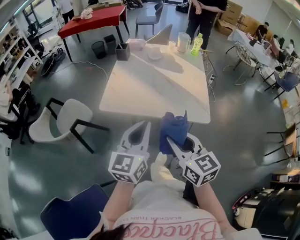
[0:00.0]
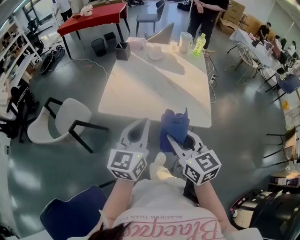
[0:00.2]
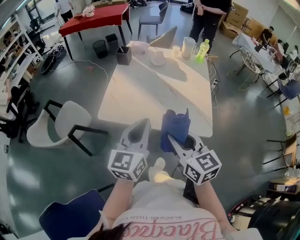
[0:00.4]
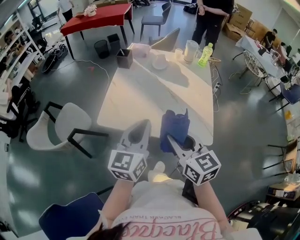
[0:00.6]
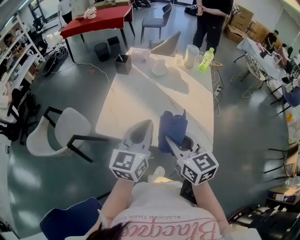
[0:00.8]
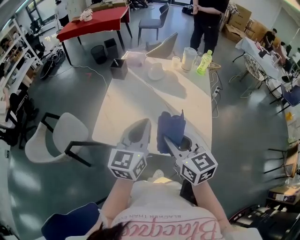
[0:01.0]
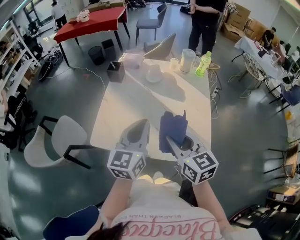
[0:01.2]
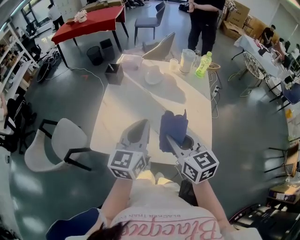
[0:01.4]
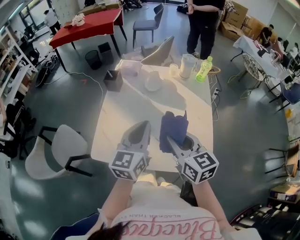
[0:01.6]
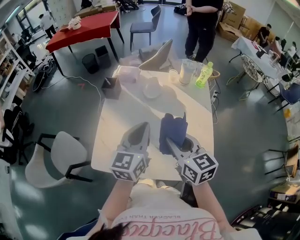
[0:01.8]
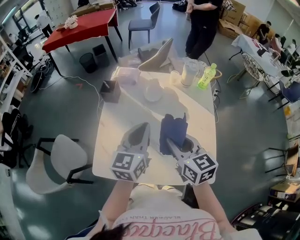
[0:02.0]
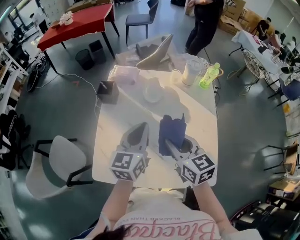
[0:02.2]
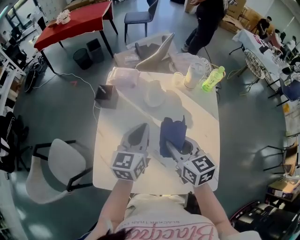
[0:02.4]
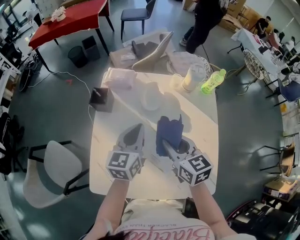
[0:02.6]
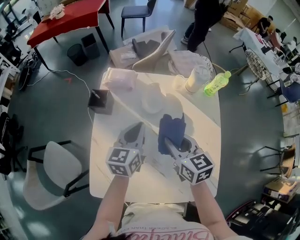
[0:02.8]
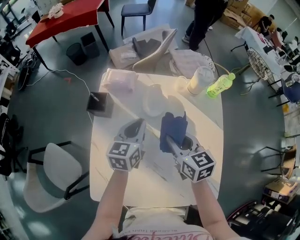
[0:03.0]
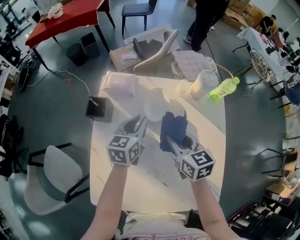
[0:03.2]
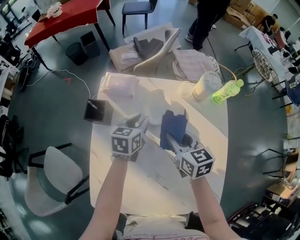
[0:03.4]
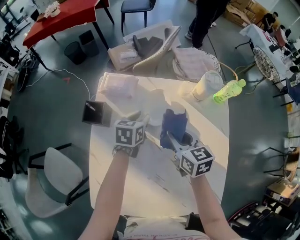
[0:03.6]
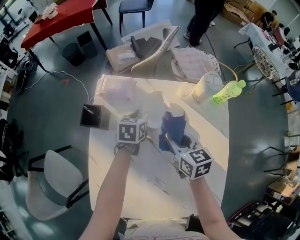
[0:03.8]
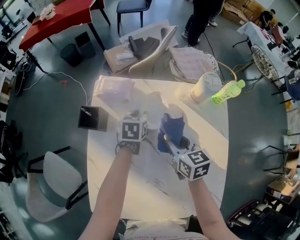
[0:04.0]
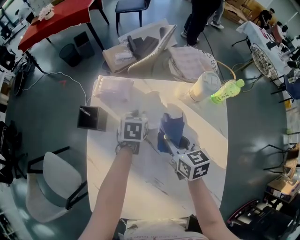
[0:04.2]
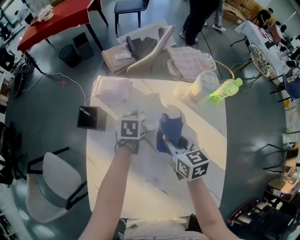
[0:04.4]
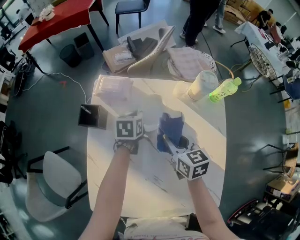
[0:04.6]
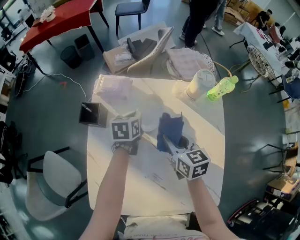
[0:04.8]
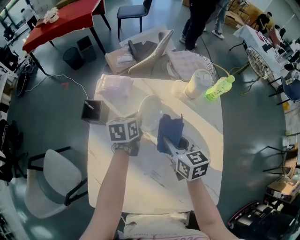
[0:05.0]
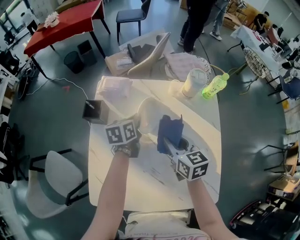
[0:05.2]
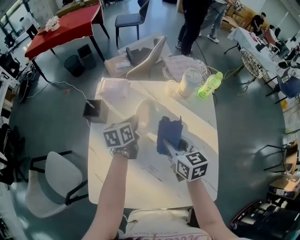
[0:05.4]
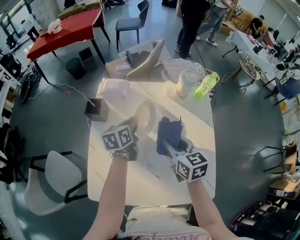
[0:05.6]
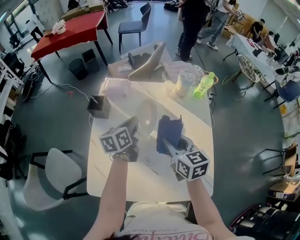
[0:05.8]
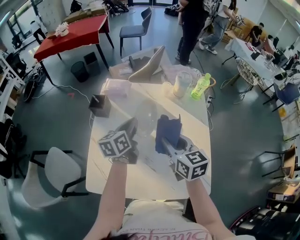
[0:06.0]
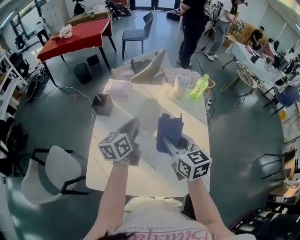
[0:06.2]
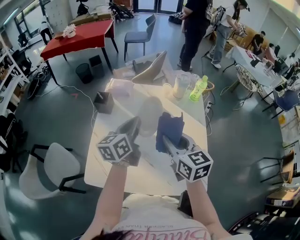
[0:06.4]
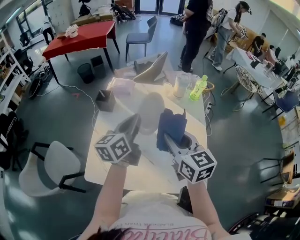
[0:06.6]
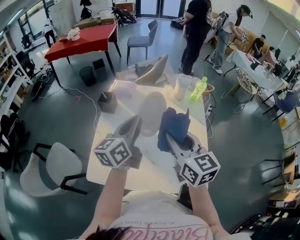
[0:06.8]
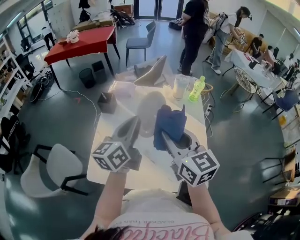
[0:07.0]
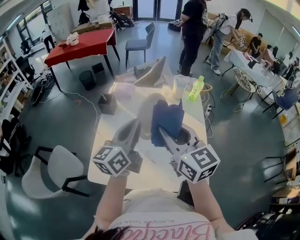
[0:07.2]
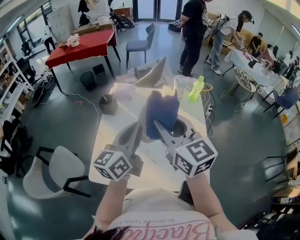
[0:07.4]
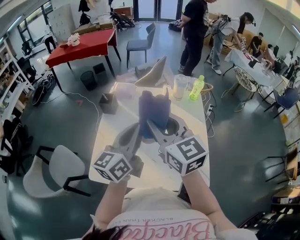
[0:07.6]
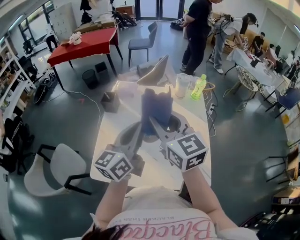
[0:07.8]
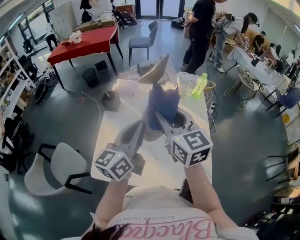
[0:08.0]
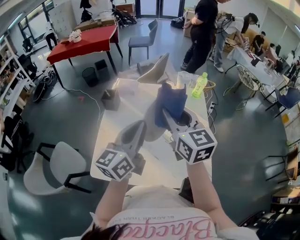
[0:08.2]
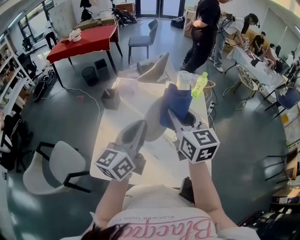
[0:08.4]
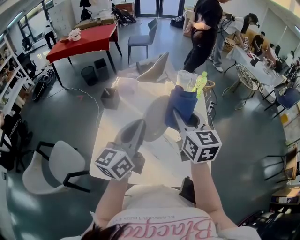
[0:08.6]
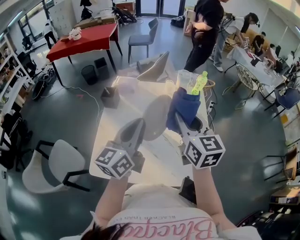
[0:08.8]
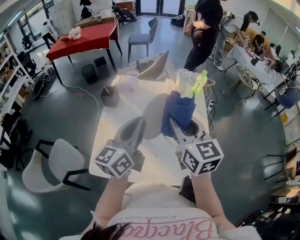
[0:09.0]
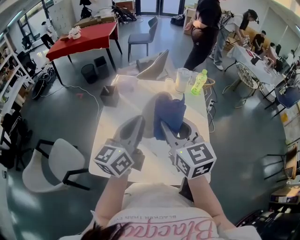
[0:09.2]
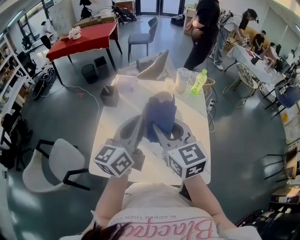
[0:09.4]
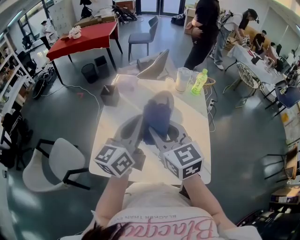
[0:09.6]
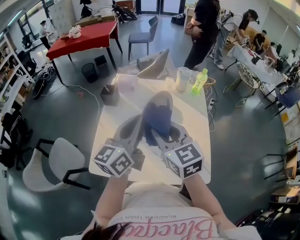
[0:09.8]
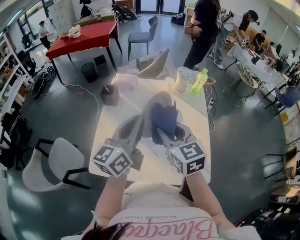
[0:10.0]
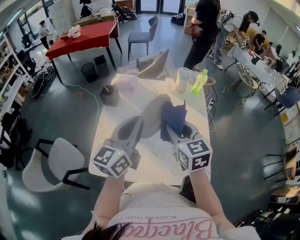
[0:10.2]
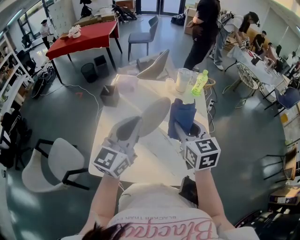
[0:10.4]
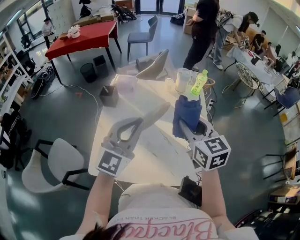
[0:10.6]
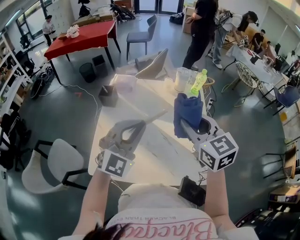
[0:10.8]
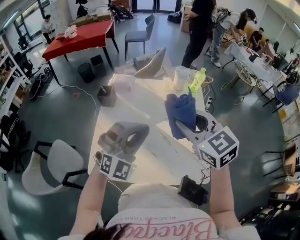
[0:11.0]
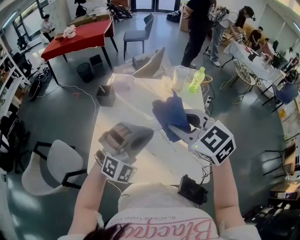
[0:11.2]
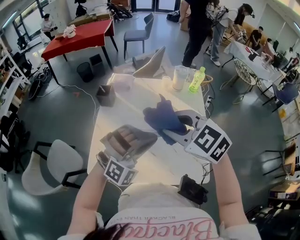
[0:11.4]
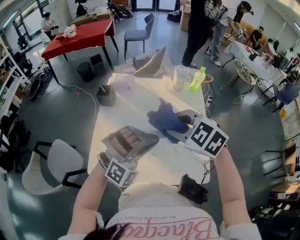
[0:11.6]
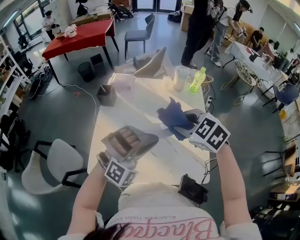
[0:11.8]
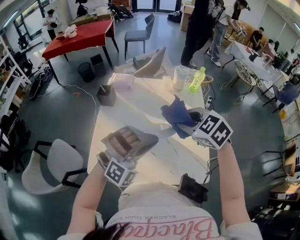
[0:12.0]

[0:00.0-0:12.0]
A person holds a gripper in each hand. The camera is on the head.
0:00.0 to 0:01.6: The two grippers go approximately 35 cm forward.
0:01.6 to 0:03.0: The two grippers go about 30 cm forward and downward.
0:03.0 to 0:04.4: The right gripper travels forward and downward by about 10 cm; the left gripper shifts about 20 cm downward and forward, and tilts its fingers some 30 degrees downward.
0:04.4 to 0:06.0: Both grippers move backward and upward, some 25 cm. The left gripper tilts its fingers some 30 degrees upward.
0:06.0 to 0:07.6: The left gripper moves backward and upward, approximately 25 cm, and swivels roughly 30 degrees. The right gripper is displaced upward and backward by approximately 20 cm, and swivels some 20 degrees.
0:07.6 to 0:09.0: The right gripper shifts roughly 5 cm to the right.
0:09.0 to 0:10.4: The right gripper moves downward, about 5 cm, and travels to the left and back again, about 5 cm each way; the left gripper turns by approximately 20 degrees.
0:10.4 to 0:12.0: The left gripper goes approximately 10 cm to the right, downward and backward, and rolls clockwise, seen from behind, by about 80 degrees, while the right gripper moves about 5 cm upward and comes back, and turns by approximately 40 degrees.

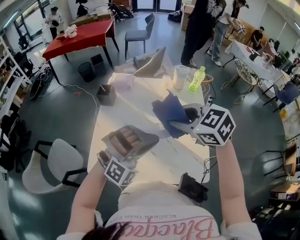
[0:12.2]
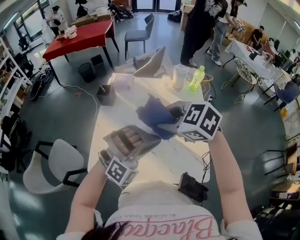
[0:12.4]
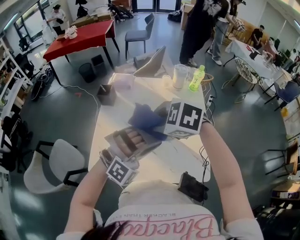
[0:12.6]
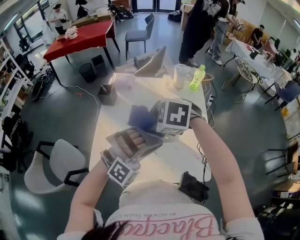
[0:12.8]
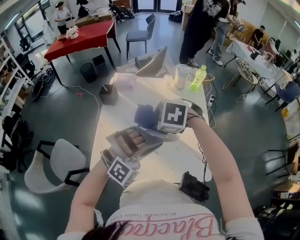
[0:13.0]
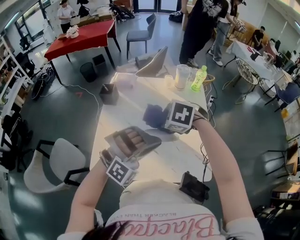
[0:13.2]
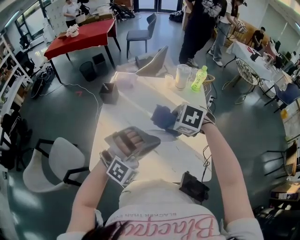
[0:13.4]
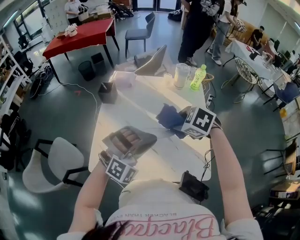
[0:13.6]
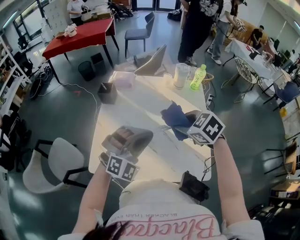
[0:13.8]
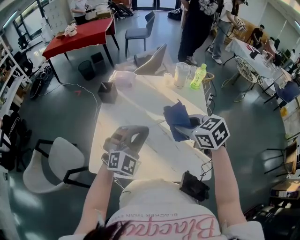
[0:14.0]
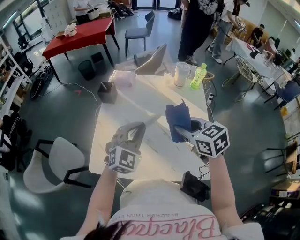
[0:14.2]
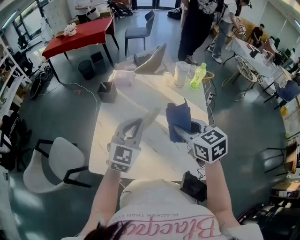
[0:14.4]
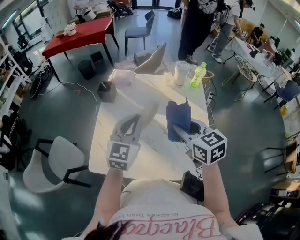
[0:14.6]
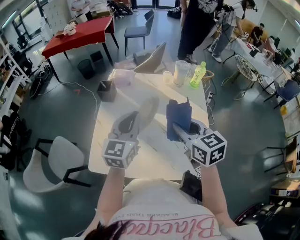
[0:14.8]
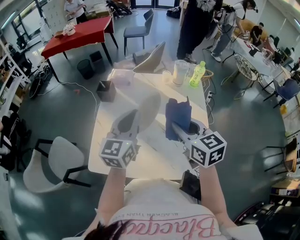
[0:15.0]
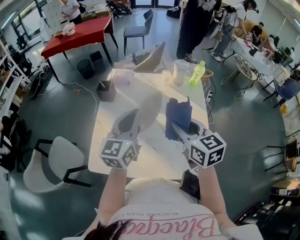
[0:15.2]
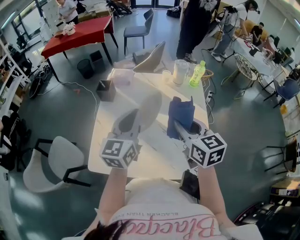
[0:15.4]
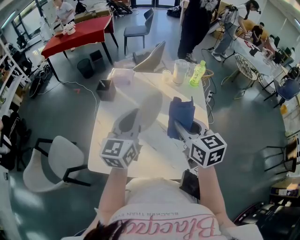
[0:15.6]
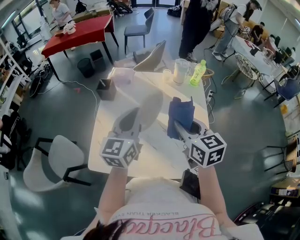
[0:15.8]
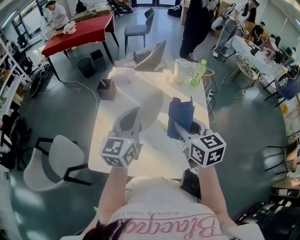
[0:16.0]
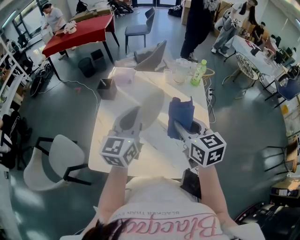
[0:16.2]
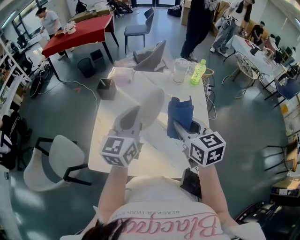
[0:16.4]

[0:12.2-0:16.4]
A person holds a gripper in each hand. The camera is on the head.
0:12.2 to 0:13.6: The right gripper heads downward, covering roughly 10 cm, and swivels roughly 30 degrees.
0:13.6 to 0:15.0: The right gripper travels upward by approximately 5 cm, and tilts its fingers roughly 40 degrees upward; the left gripper moves forward, to the left and upward, approximately 15 cm, and rotates around the line of its fingers by about 90 degrees, counterclockwise from behind.
0:15.0 to 0:16.4: The grippers move only a little.

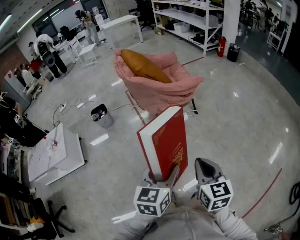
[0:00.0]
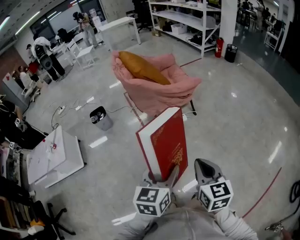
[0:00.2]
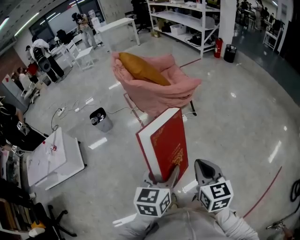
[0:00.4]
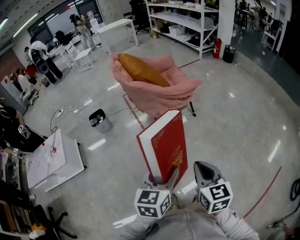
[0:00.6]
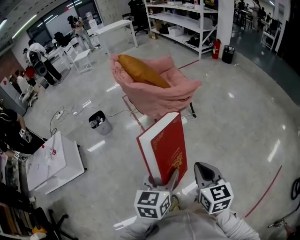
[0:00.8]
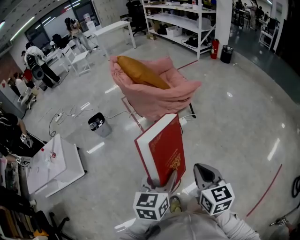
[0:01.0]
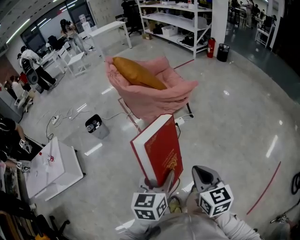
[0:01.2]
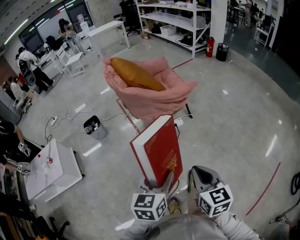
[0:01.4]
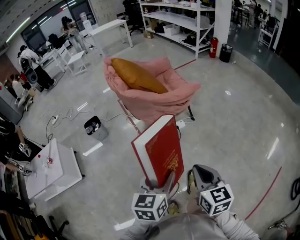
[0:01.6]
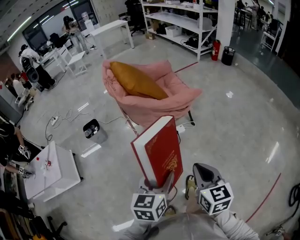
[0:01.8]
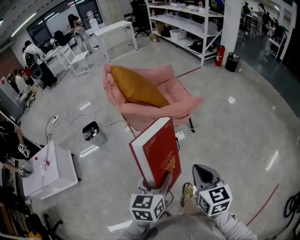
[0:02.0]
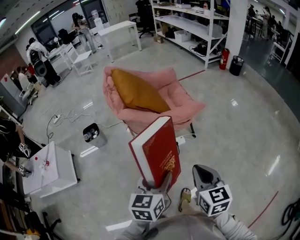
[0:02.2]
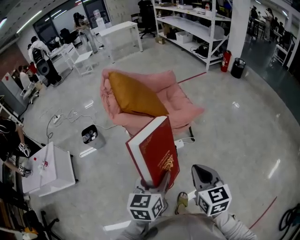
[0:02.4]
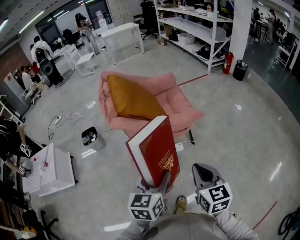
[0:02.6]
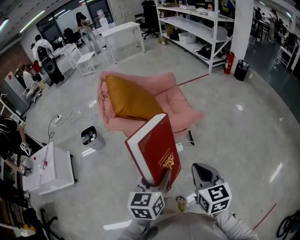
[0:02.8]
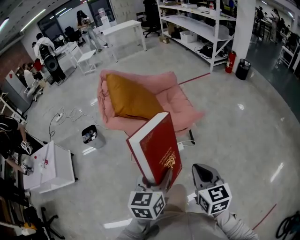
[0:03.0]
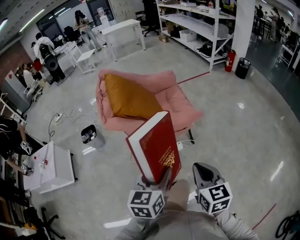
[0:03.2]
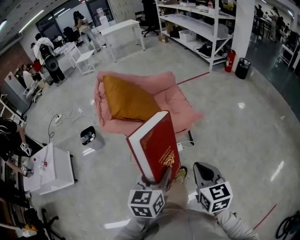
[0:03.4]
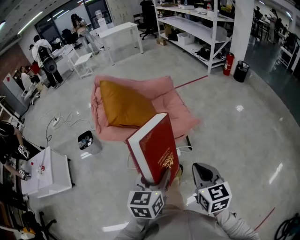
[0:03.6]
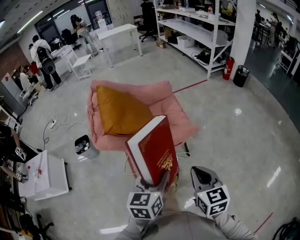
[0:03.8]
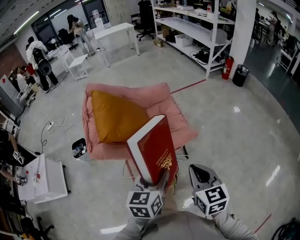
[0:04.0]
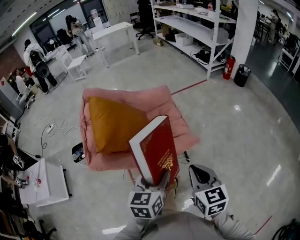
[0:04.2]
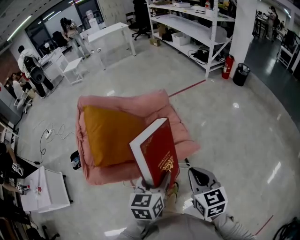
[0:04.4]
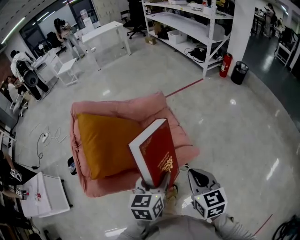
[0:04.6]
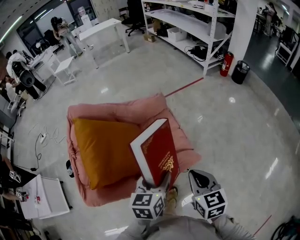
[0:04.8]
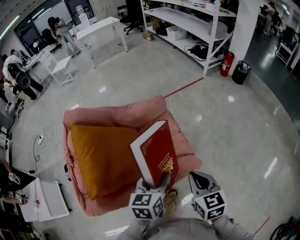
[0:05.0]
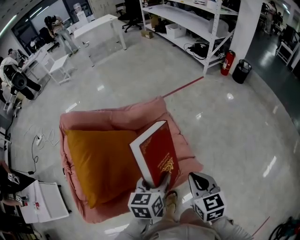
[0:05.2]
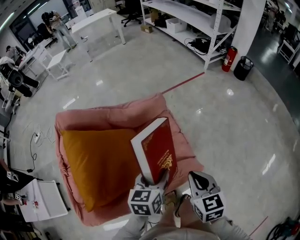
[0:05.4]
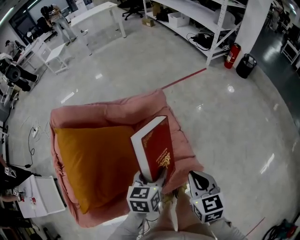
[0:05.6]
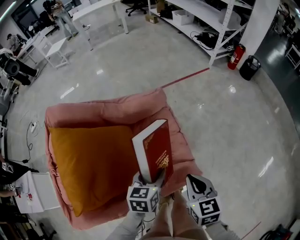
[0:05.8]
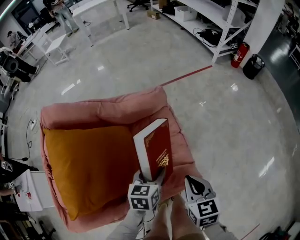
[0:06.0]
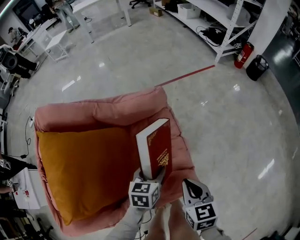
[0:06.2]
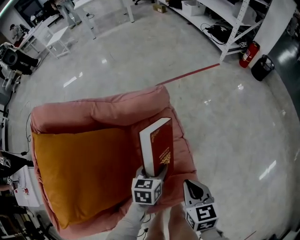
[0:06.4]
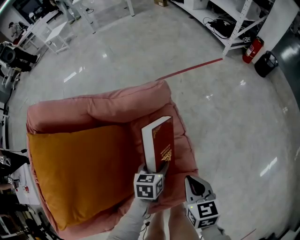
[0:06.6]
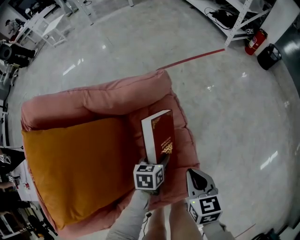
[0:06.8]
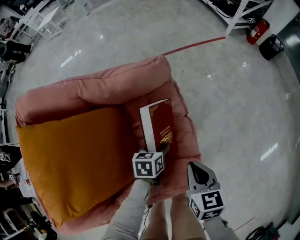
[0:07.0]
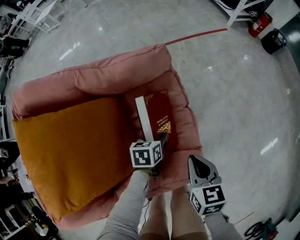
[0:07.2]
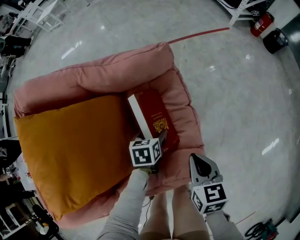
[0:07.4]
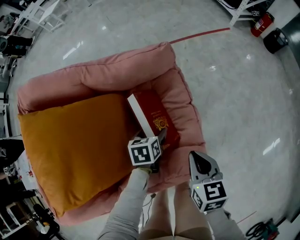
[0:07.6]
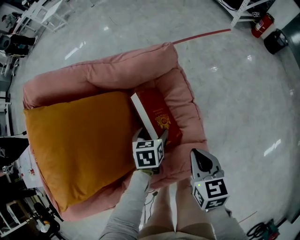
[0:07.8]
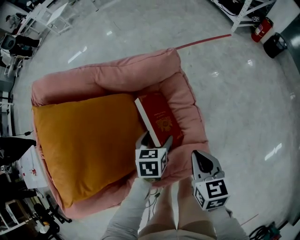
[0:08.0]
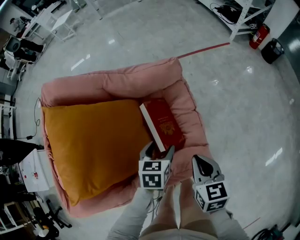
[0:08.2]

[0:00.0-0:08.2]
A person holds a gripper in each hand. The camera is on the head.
0:00.0 to 0:01.6: The left gripper changes place by some 5 cm.
0:01.6 to 0:03.2: Both grippers move forward, about 10 cm.
0:03.2 to 0:05.0: Both grippers move forward, about 30 cm.
0:05.0 to 0:06.6: The grippers both shift downward and forward by about 25 cm.
0:06.6 to 0:08.2: The right gripper ends up approximately 5 cm from where it was, while the left gripper moves upward and backward, some 10 cm.
